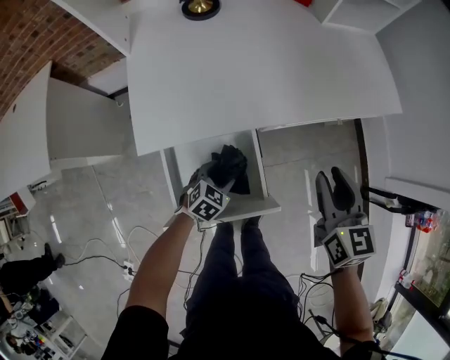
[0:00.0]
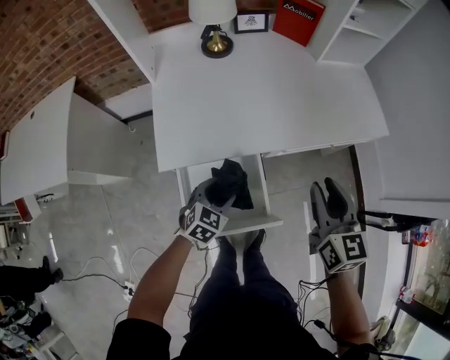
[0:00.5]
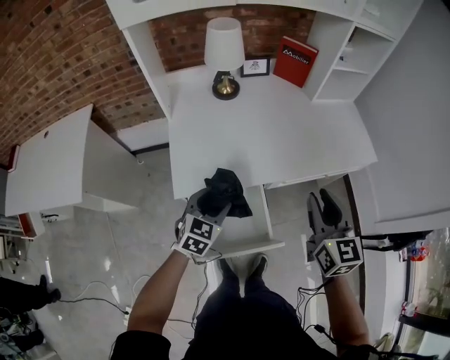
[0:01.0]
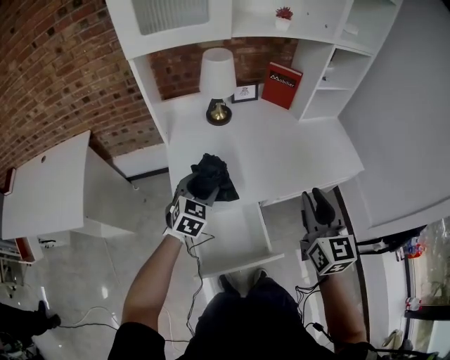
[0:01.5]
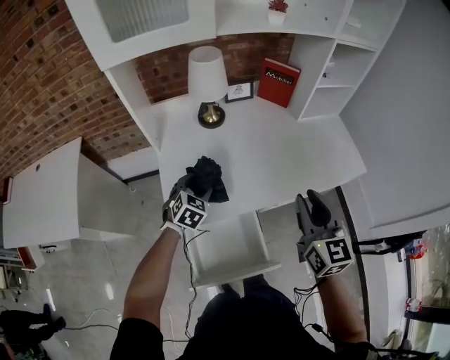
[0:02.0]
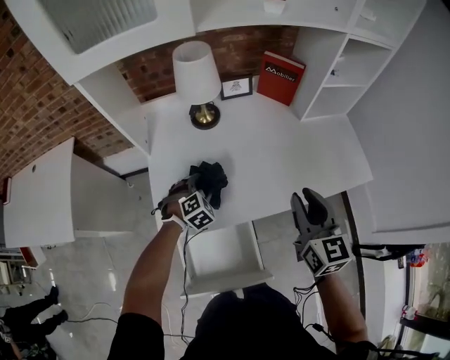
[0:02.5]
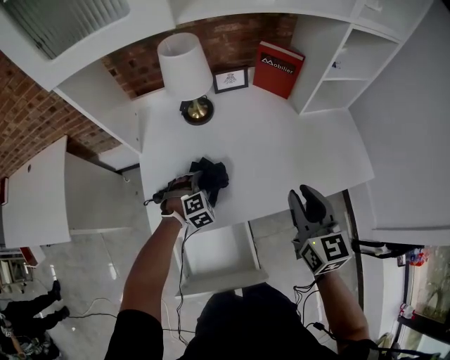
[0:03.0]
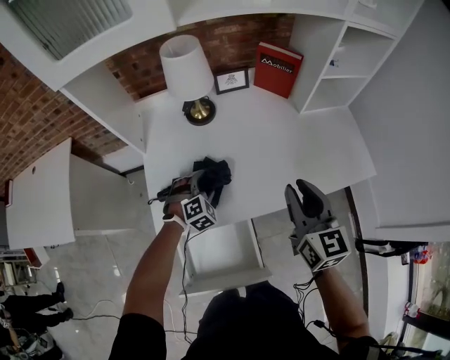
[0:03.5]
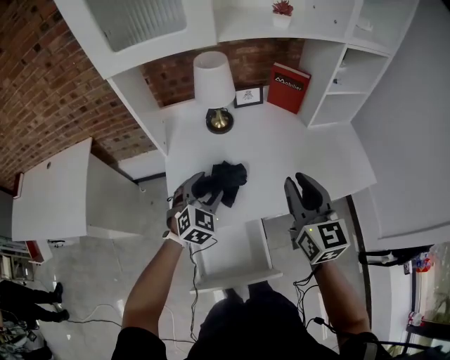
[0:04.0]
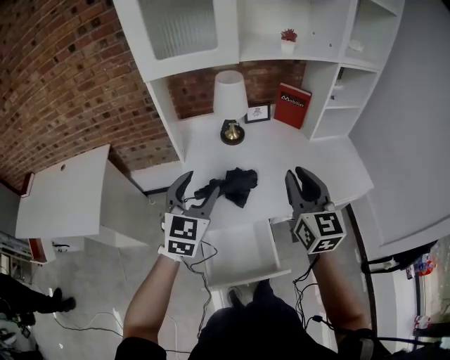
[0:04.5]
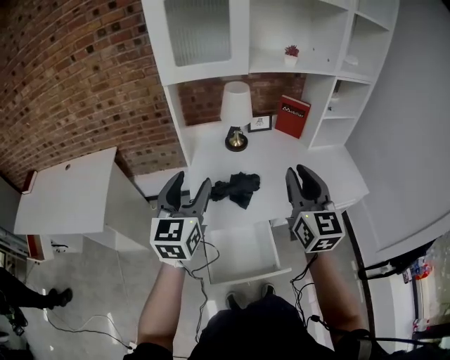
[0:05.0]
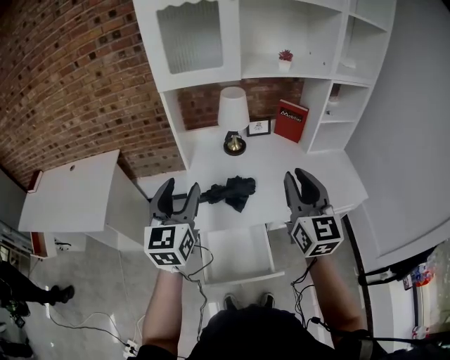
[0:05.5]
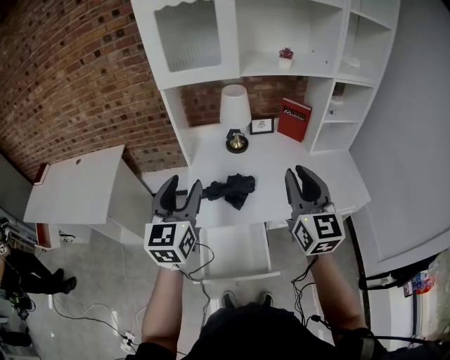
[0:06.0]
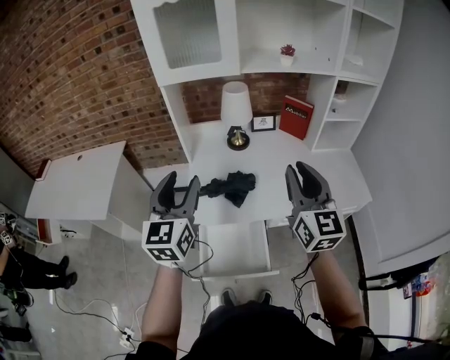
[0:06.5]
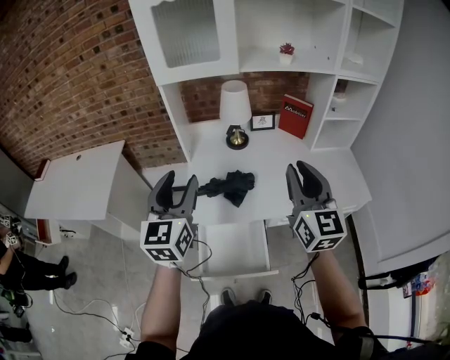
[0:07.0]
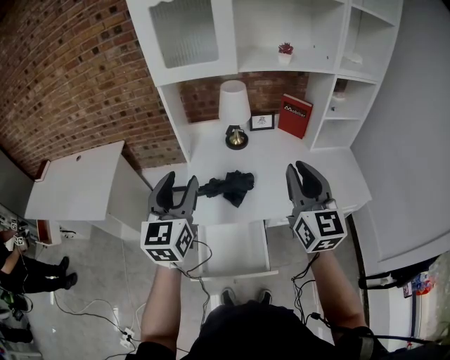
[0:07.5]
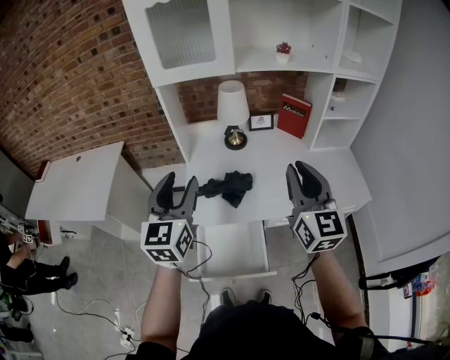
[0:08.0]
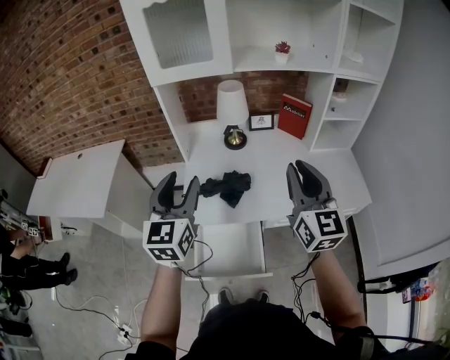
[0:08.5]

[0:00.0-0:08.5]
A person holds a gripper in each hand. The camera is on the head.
0:00.0 to 0:02.0: The left gripper shifts approximately 35 cm upward, forward and to the left, and changes its angle by some 20 degrees. The right gripper heads upward and to the left, covering about 20 cm.
0:02.0 to 0:04.0: The right gripper heads forward, covering about 5 cm. Meanwhile the left gripper heads upward, covering approximately 5 cm.
0:04.0 to 0:06.5: The right gripper moves upward and backward, roughly 15 cm. Meanwhile the left gripper shifts roughly 30 cm upward and backward, and tilts its fingers about 30 degrees upward.
0:06.5 to 0:08.5: The grippers stay close to where they were, moving slightly.

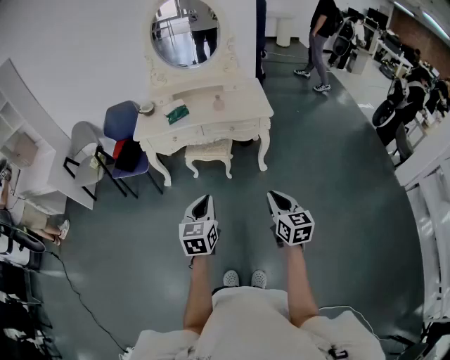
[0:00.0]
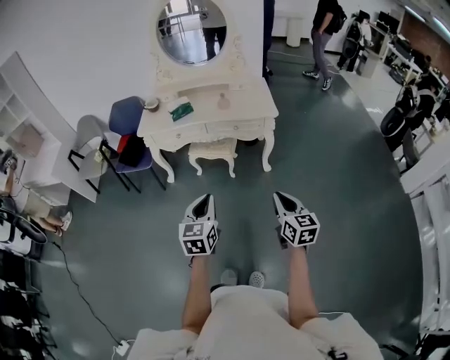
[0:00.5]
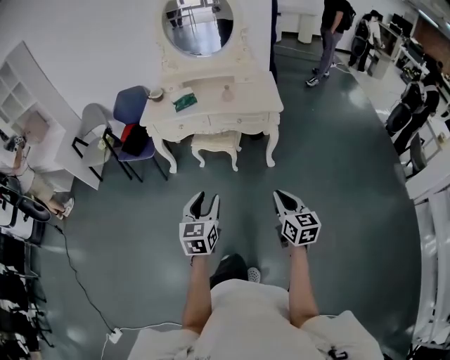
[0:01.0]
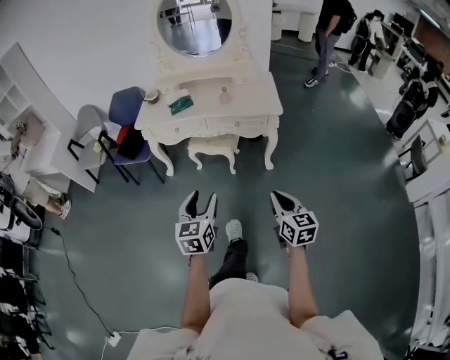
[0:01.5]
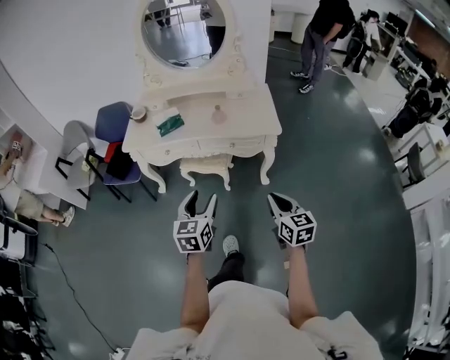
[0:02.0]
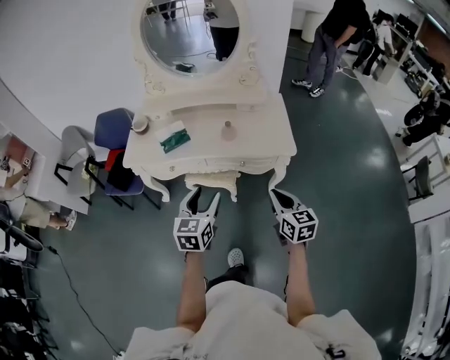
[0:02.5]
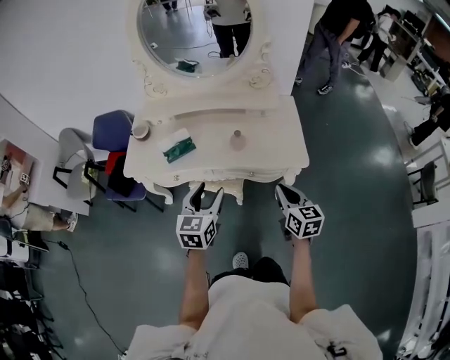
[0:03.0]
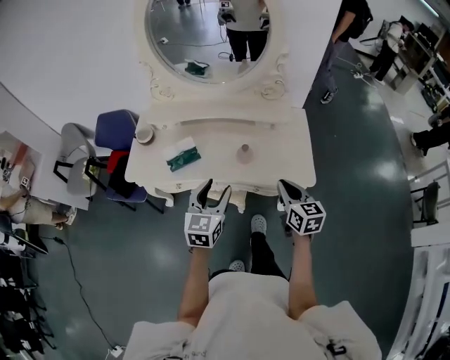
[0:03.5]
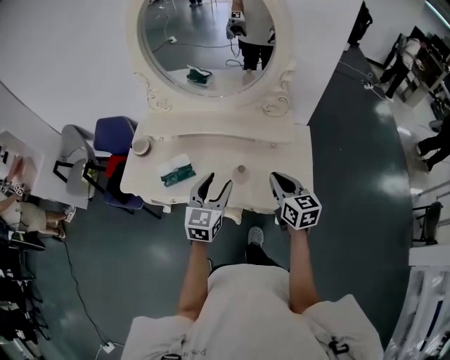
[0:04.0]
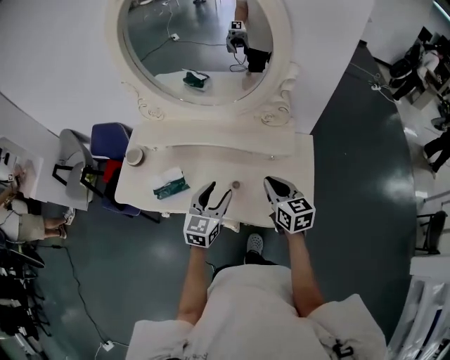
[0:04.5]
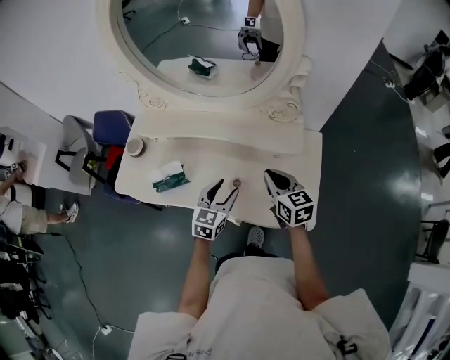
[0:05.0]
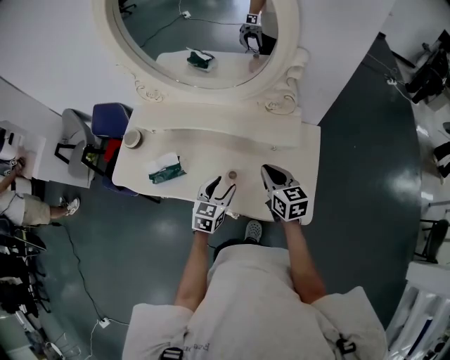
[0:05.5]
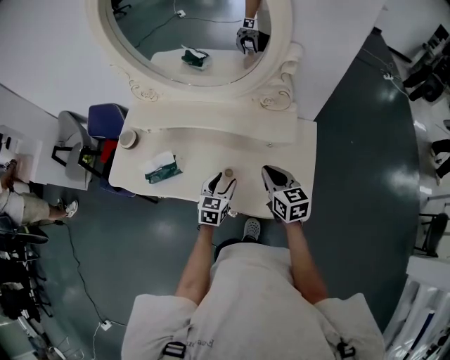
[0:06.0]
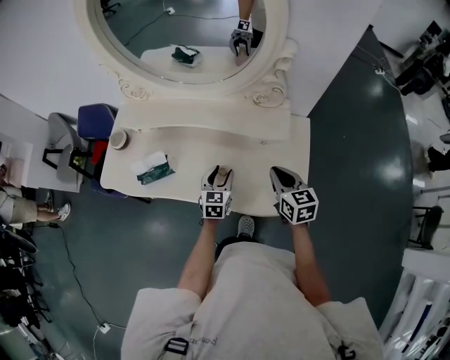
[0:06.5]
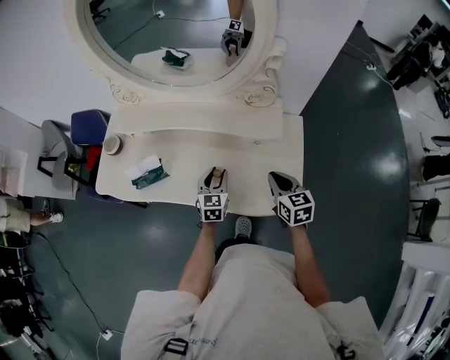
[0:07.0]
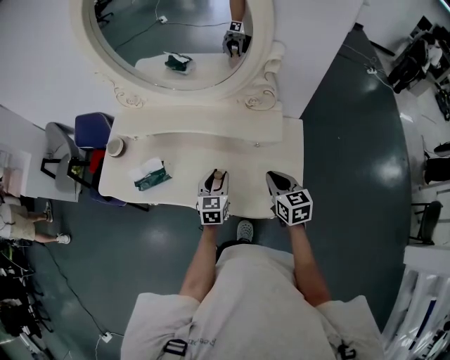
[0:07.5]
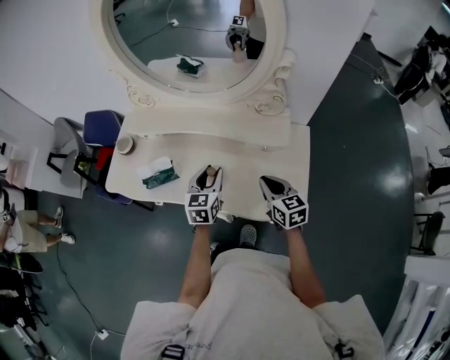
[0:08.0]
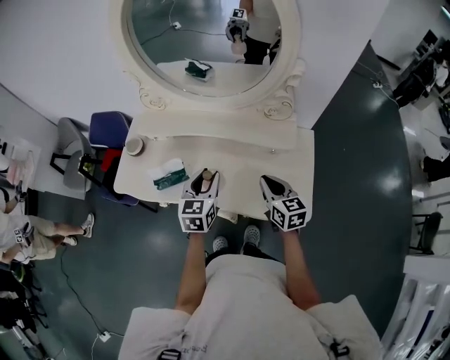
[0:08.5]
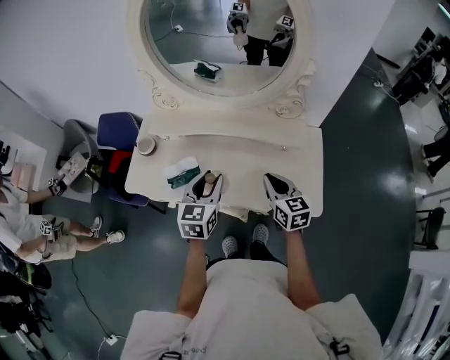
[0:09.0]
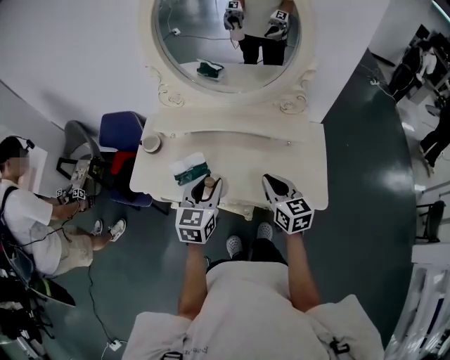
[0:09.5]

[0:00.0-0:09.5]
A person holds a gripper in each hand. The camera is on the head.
0:00.0 to 0:02.0: Both grippers travel together forward, roughly 20 cm. The left gripper opens.
0:02.0 to 0:04.0: Both grippers are carried forward, some 50 cm.
0:04.0 to 0:05.5: The left gripper heads downward, covering approximately 15 cm. Meanwhile the right gripper is displaced forward and downward by about 15 cm.
0:05.5 to 0:07.5: The right gripper shifts about 5 cm to the right.
0:07.5 to 0:09.5: The right gripper travels to the left and upward by about 20 cm, while the left gripper travels upward and to the left by approximately 25 cm.

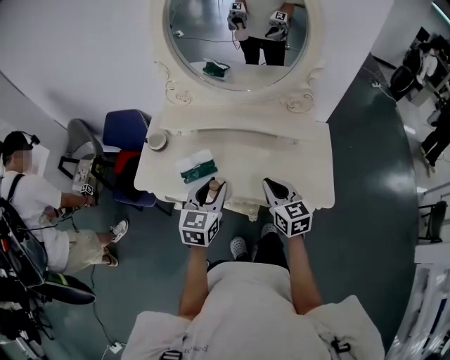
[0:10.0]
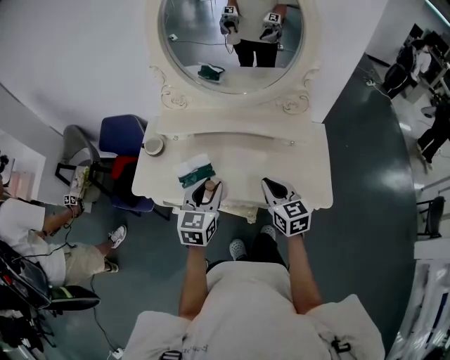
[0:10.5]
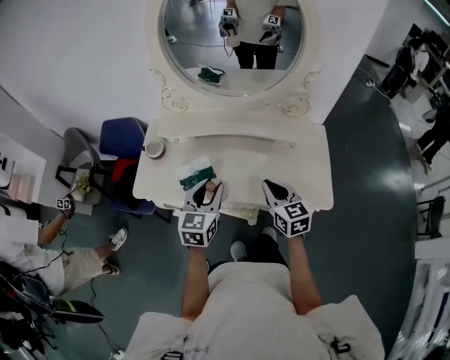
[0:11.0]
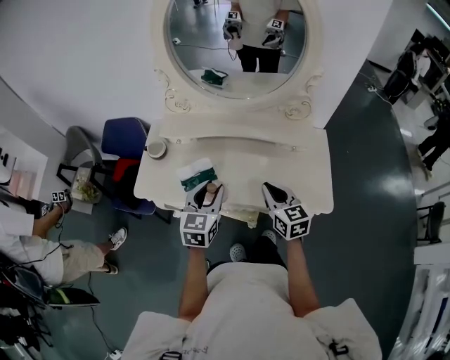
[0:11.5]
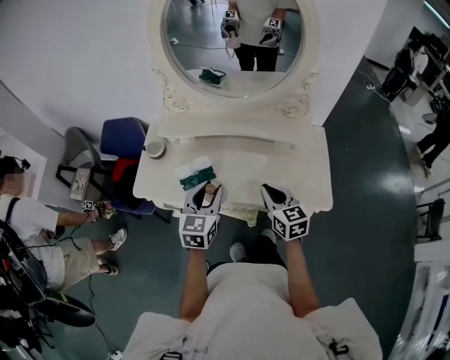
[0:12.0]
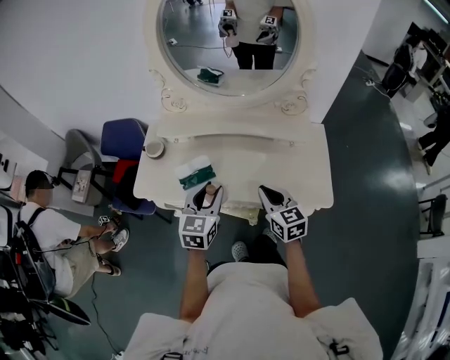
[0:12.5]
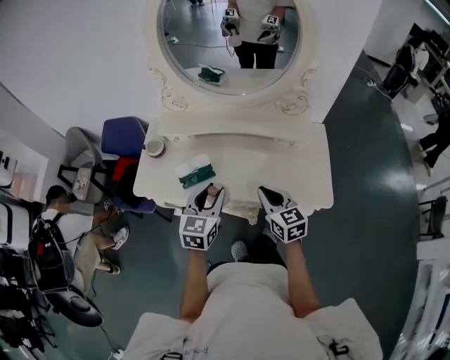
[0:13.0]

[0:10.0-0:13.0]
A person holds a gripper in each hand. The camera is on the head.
0:10.0 to 0:13.0: The grippers stay close to where they were, moving slightly.

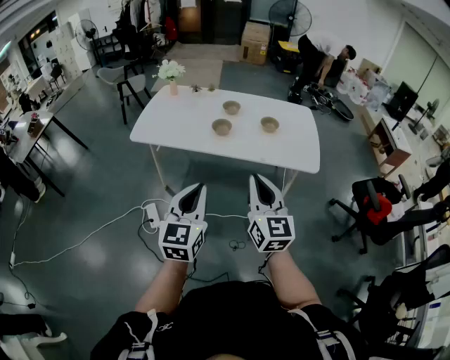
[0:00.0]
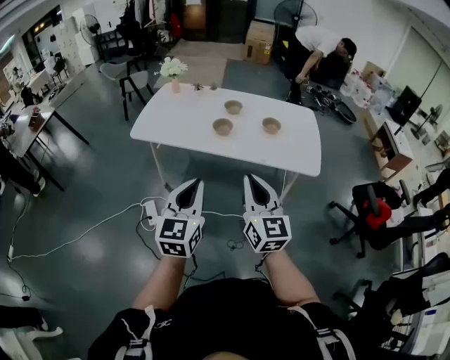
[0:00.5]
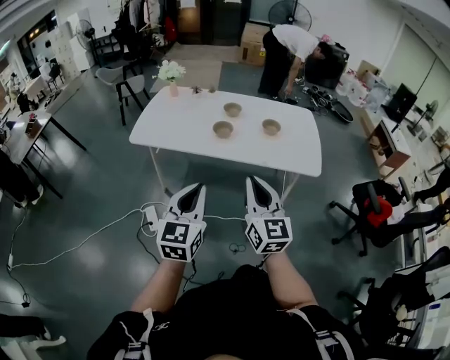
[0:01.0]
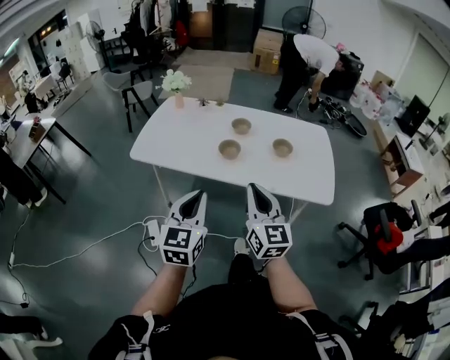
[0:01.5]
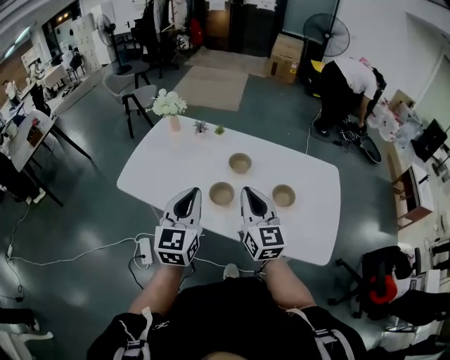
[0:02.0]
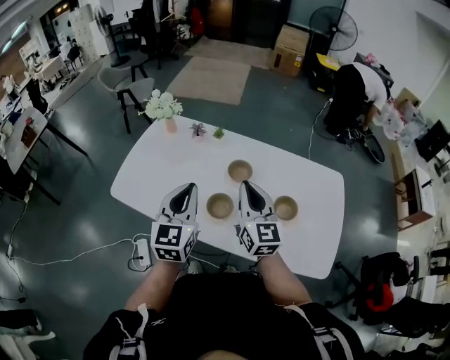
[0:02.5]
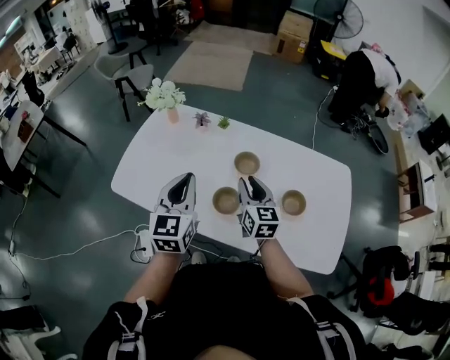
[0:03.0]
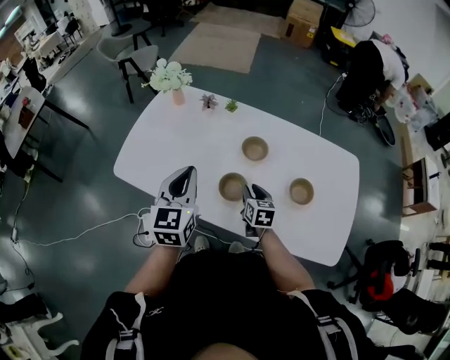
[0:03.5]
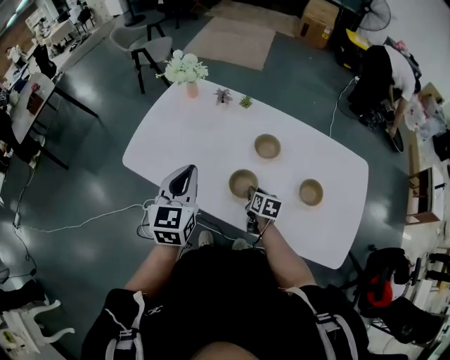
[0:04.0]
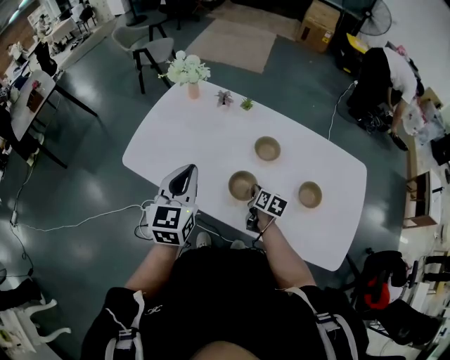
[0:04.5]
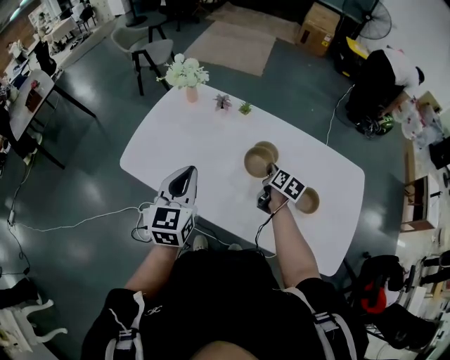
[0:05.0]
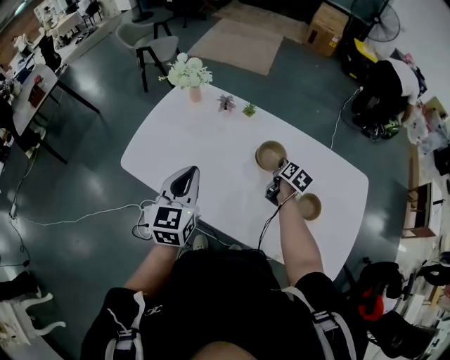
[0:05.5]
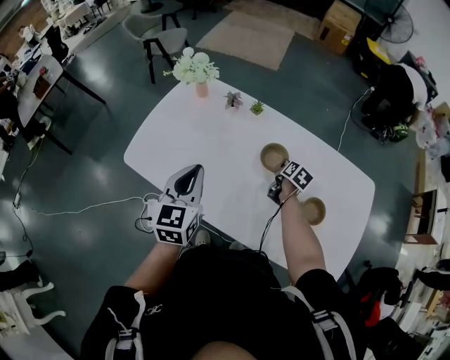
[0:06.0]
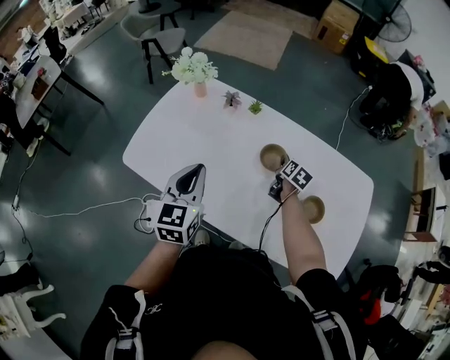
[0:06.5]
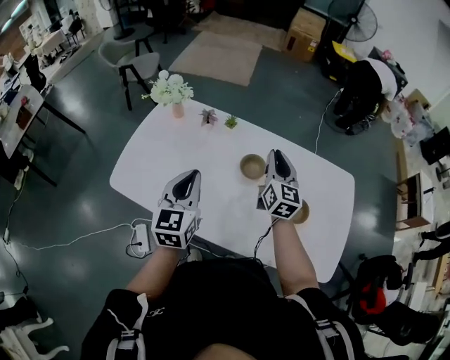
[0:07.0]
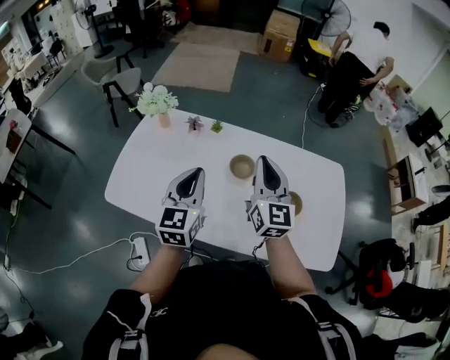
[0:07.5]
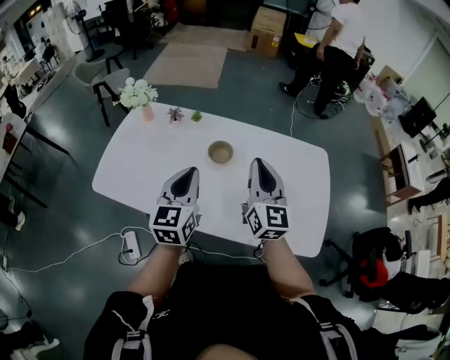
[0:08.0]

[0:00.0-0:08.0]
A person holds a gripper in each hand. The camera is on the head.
0:00.0 to 0:02.0: The pair of grippers is taken forward, about 50 cm.
0:02.0 to 0:04.0: The right gripper is displaced downward and forward by some 40 cm, tilts its fingers some 50 degrees downward, and opens. The left gripper is displaced forward, to the left and downward by about 20 cm.
0:04.0 to 0:06.0: The left gripper heads forward, covering some 5 cm, while the right gripper shifts about 20 cm forward and to the right.
0:06.0 to 0:08.0: The left gripper goes approximately 15 cm to the right and backward. The right gripper goes approximately 40 cm upward and backward, points its fingers approximately 50 degrees further upward, and opens, then closes once more.
